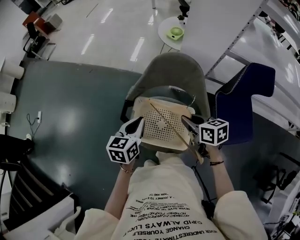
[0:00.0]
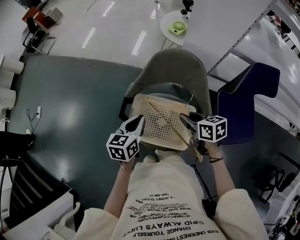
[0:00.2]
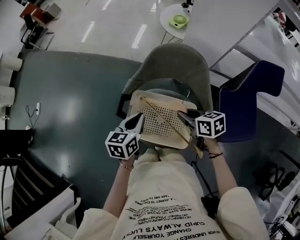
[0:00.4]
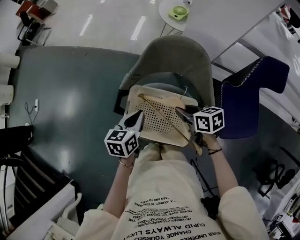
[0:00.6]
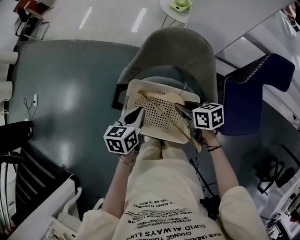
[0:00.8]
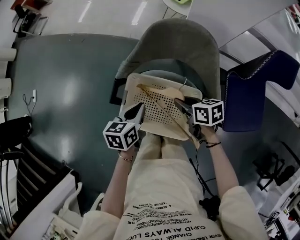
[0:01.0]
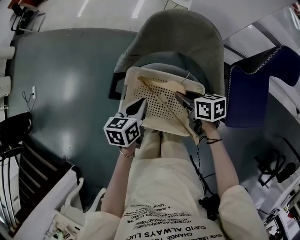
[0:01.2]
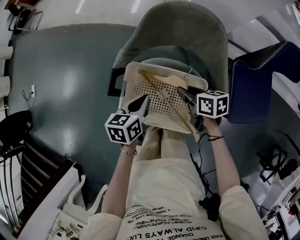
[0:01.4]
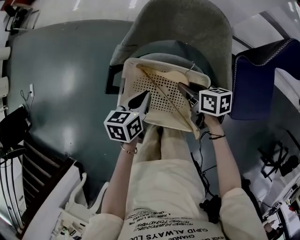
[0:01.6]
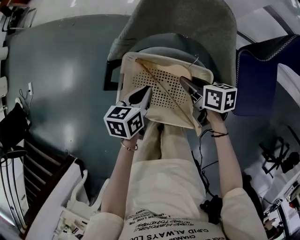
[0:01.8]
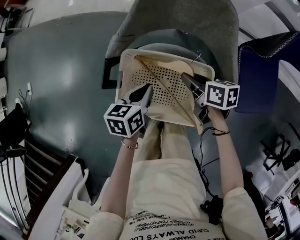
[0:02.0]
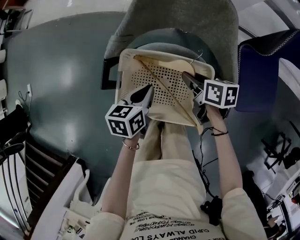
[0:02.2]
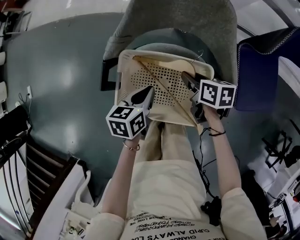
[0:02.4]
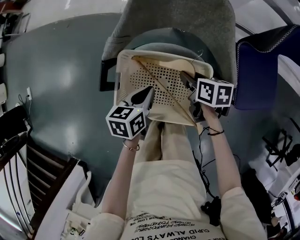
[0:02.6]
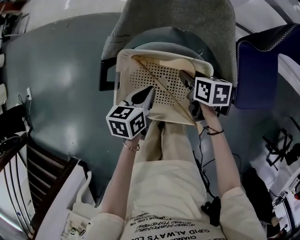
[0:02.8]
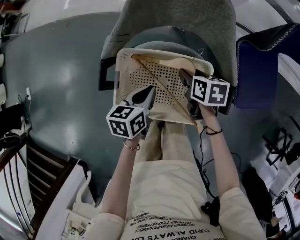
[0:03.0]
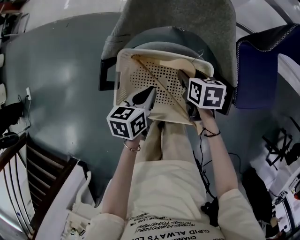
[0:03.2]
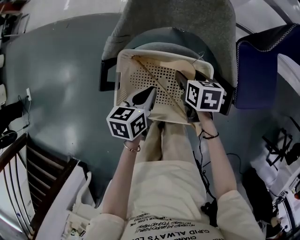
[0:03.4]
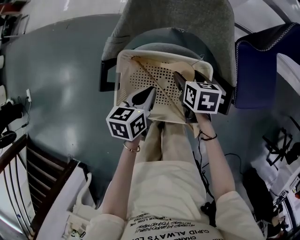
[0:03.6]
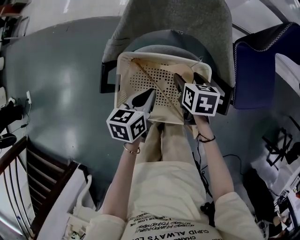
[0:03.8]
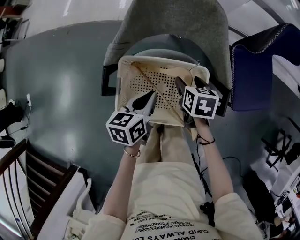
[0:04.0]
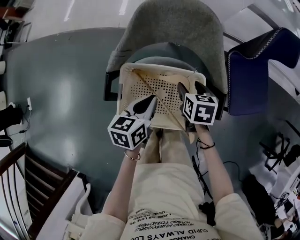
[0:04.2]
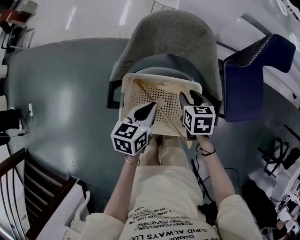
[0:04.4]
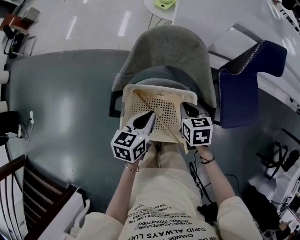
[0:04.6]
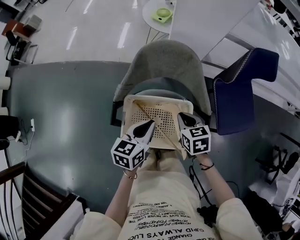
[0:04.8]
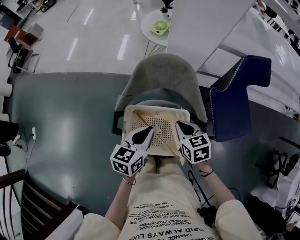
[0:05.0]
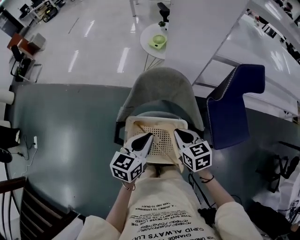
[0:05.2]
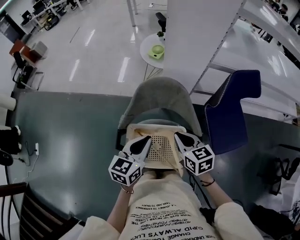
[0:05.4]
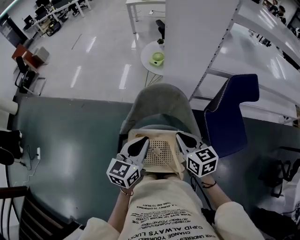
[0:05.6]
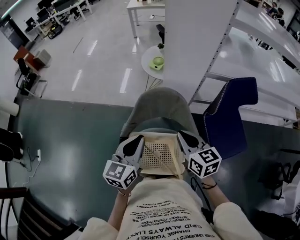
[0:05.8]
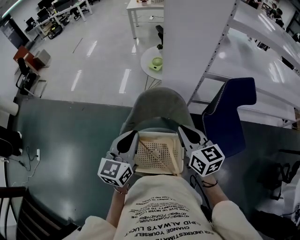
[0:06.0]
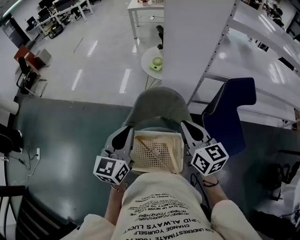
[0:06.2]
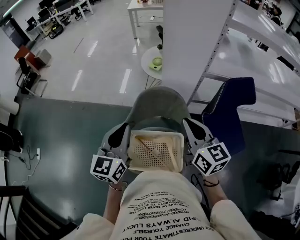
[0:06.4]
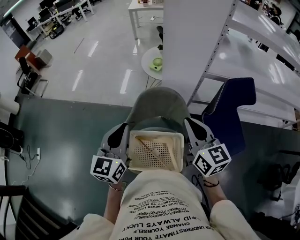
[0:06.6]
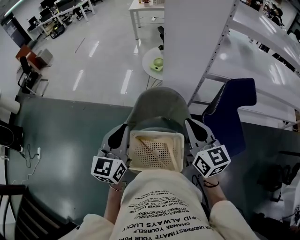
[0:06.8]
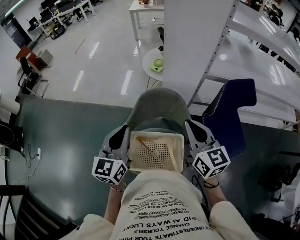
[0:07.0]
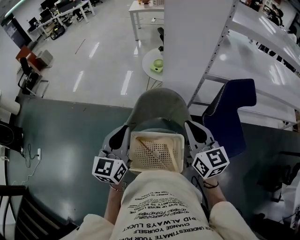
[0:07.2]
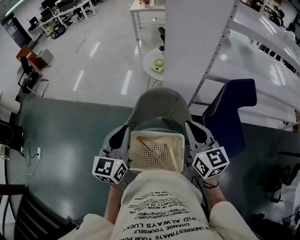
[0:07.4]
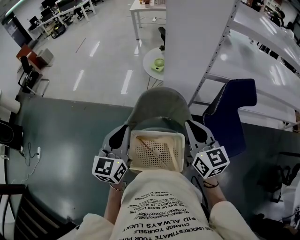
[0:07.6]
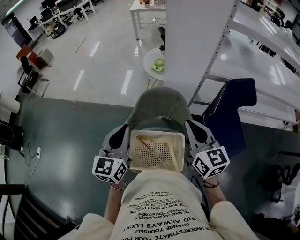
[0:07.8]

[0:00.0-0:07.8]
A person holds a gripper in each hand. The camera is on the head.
0:00.0 to 0:01.6: The grippers both shift downward by approximately 15 cm.
0:01.6 to 0:03.2: The right gripper changes place by some 5 cm, rotates approximately 30 degrees, and opens its fingers.
0:03.2 to 0:04.6: Both grippers move upward, roughly 10 cm. The right gripper closes up.
0:04.6 to 0:06.2: Both grippers travel together upward, some 25 cm. The right gripper tilts its fingers approximately 40 degrees upward; the left gripper turns by approximately 40 degrees.
0:06.2 to 0:07.8: The grippers move only a little.

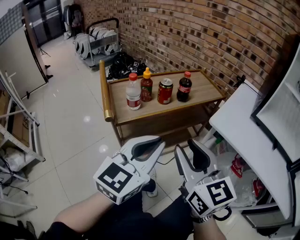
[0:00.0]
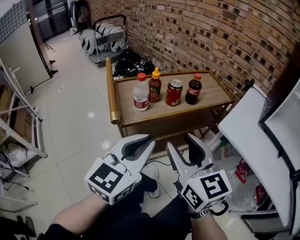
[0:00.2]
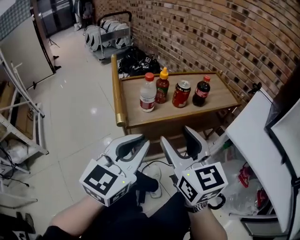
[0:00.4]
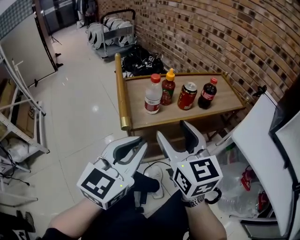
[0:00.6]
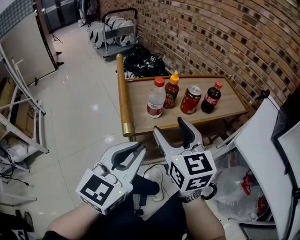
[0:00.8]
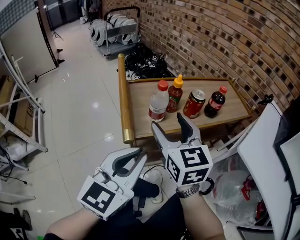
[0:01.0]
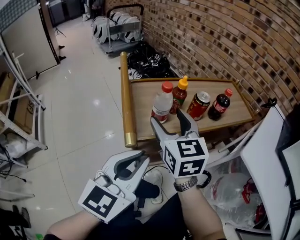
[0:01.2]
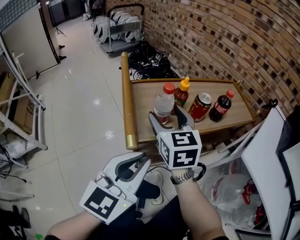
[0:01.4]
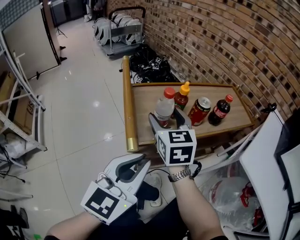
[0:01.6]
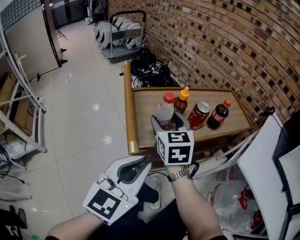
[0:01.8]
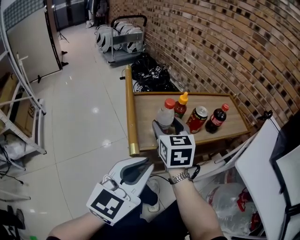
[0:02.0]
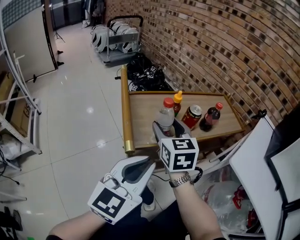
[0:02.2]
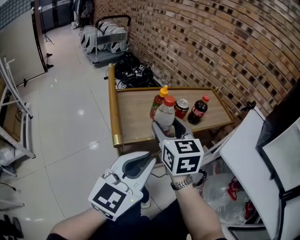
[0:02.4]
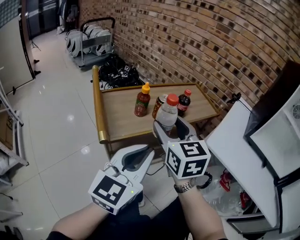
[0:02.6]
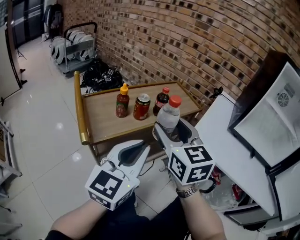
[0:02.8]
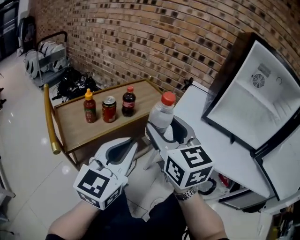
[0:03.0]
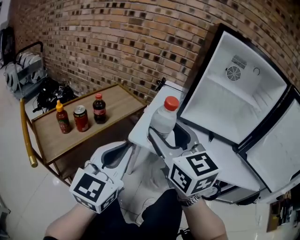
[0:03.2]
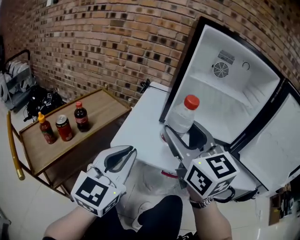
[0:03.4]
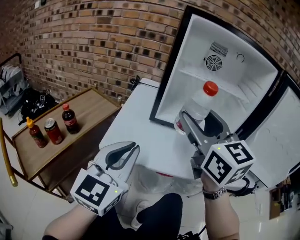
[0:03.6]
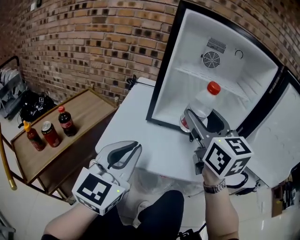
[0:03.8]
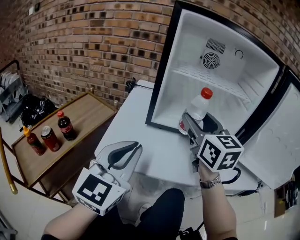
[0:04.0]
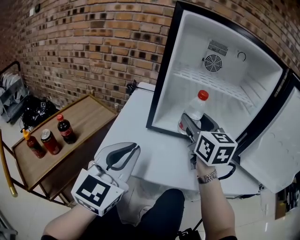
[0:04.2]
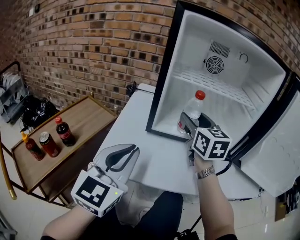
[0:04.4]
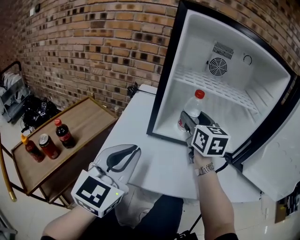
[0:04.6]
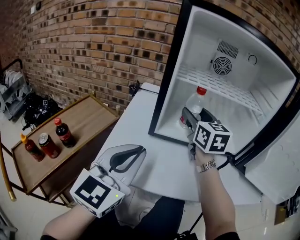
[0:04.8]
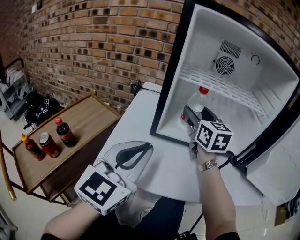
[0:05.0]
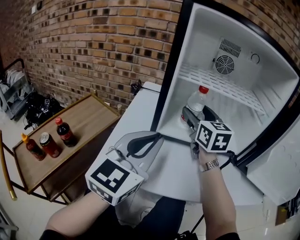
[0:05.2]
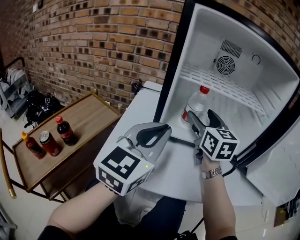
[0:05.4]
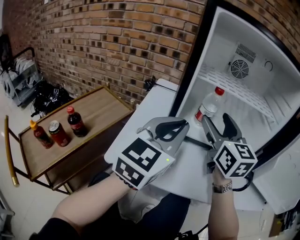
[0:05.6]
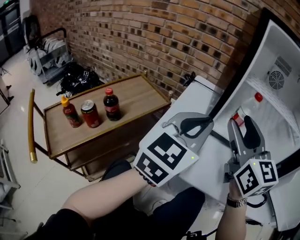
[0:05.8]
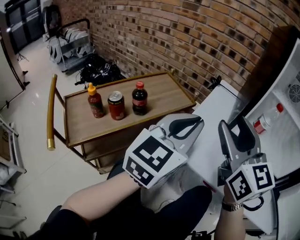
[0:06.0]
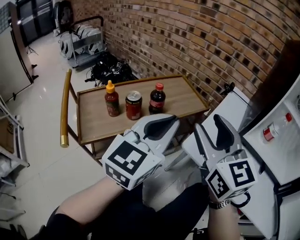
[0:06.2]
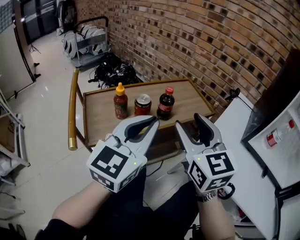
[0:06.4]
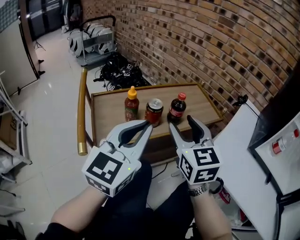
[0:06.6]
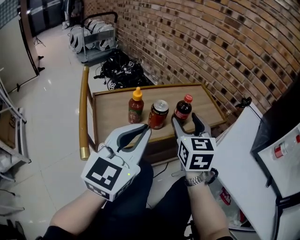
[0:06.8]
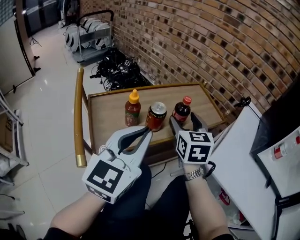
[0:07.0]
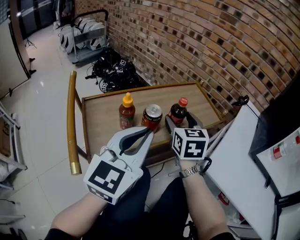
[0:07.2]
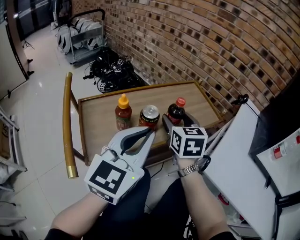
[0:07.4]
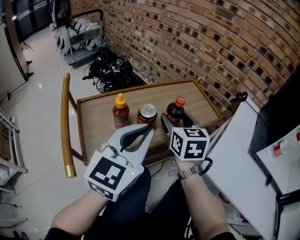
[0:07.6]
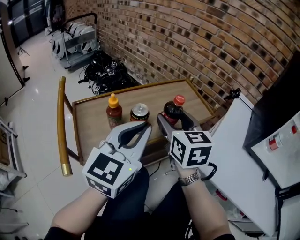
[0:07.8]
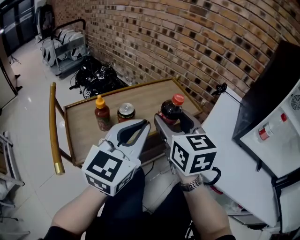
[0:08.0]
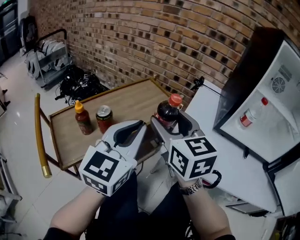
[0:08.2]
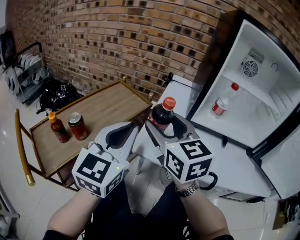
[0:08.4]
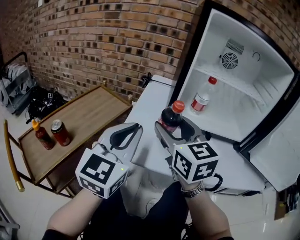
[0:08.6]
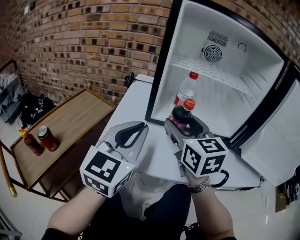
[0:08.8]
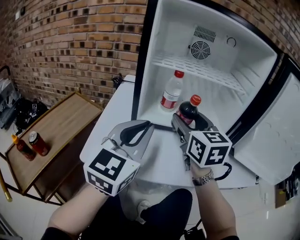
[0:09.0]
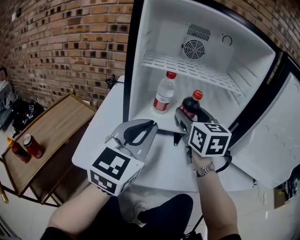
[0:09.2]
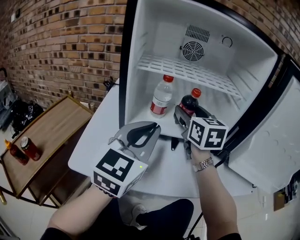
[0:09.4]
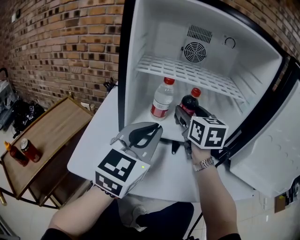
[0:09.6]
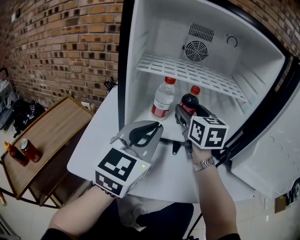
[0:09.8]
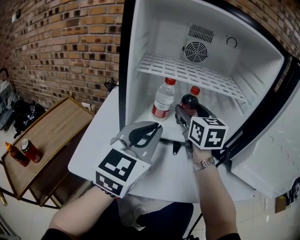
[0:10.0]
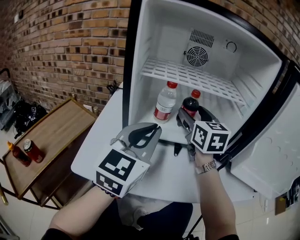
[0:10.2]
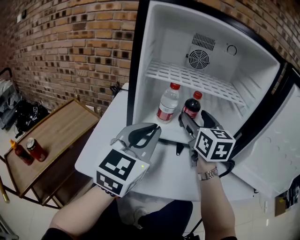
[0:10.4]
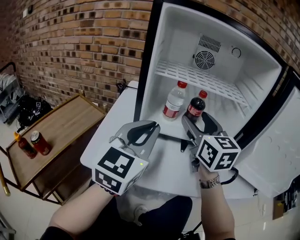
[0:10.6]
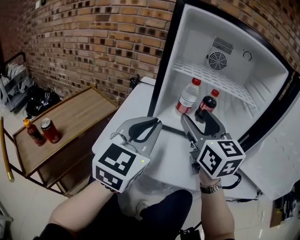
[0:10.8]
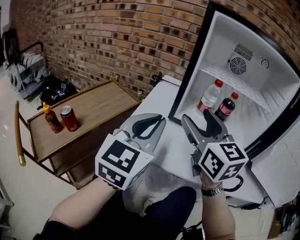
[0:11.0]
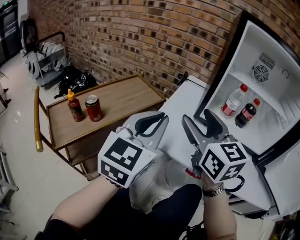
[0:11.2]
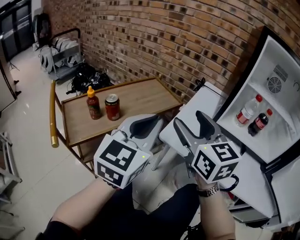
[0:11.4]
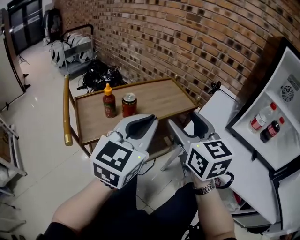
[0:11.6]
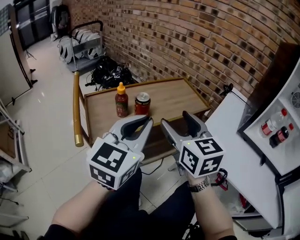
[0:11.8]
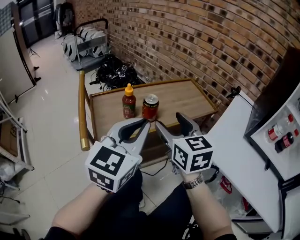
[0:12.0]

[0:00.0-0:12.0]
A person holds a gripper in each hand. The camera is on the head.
0:00.0 to 0:01.6: The left gripper goes about 15 cm to the left and forward, while the right gripper moves forward and to the left, some 30 cm, and opens its fingers.
0:01.6 to 0:03.0: The right gripper heads to the right, upward and backward, covering some 35 cm, and swivels some 20 degrees. Meanwhile the left gripper heads to the right, covering roughly 20 cm, and changes its angle by approximately 20 degrees.
0:03.0 to 0:04.4: The left gripper heads to the right and forward, covering some 25 cm, and turns by some 20 degrees, while the right gripper goes about 40 cm to the right and forward, and changes its angle by approximately 30 degrees.
0:04.4 to 0:06.0: The left gripper goes about 10 cm to the left. The right gripper is displaced to the left and backward by about 25 cm, and changes its angle by about 30 degrees.
0:06.0 to 0:07.6: The left gripper travels to the left by about 25 cm, and turns by approximately 20 degrees; the right gripper goes some 35 cm to the left, downward and forward, and turns by about 30 degrees.
0:07.6 to 0:09.0: The pair of grippers is taken some 50 cm. The right gripper rotates approximately 40 degrees. Meanwhile the left gripper rotates about 40 degrees.
0:09.0 to 0:10.4: The right gripper shifts some 5 cm forward.
0:10.4 to 0:12.0: The pair of grippers is taken roughly 50 cm. The right gripper rotates roughly 50 degrees; the left gripper changes its angle by approximately 40 degrees.

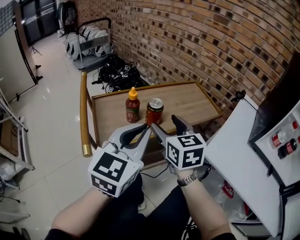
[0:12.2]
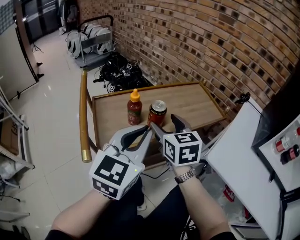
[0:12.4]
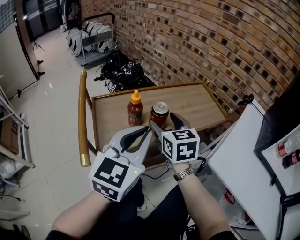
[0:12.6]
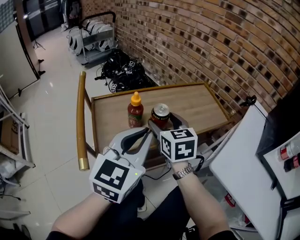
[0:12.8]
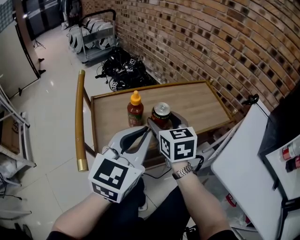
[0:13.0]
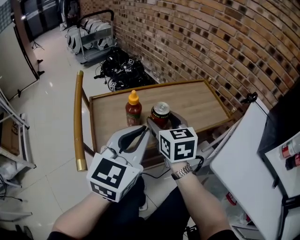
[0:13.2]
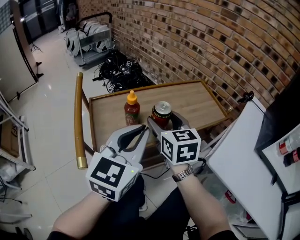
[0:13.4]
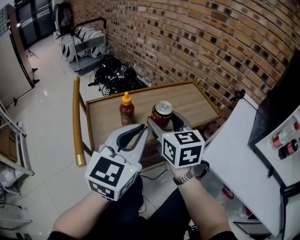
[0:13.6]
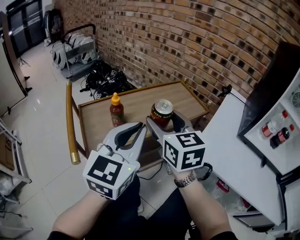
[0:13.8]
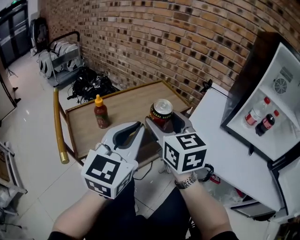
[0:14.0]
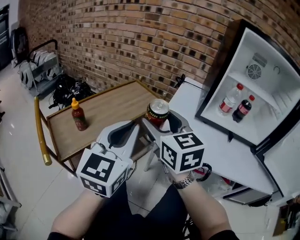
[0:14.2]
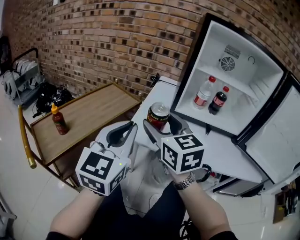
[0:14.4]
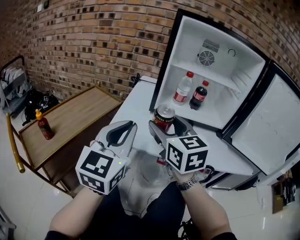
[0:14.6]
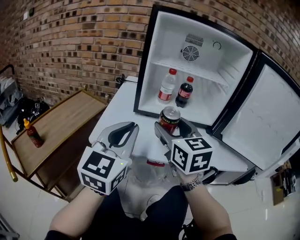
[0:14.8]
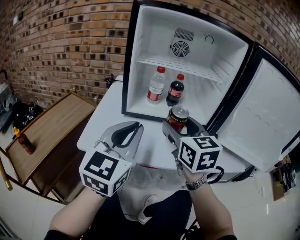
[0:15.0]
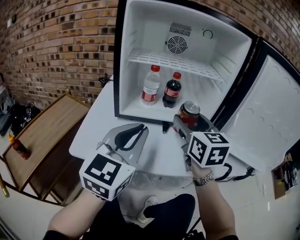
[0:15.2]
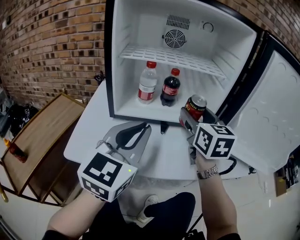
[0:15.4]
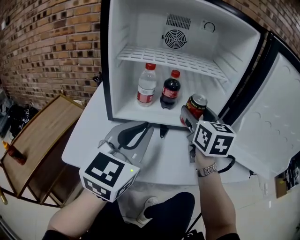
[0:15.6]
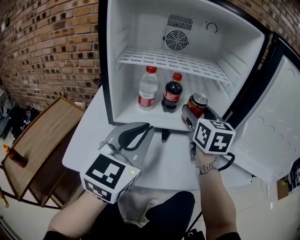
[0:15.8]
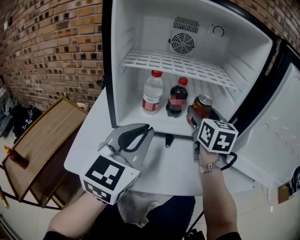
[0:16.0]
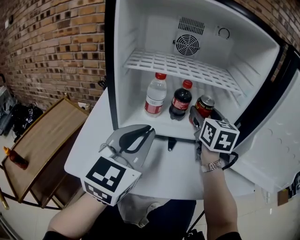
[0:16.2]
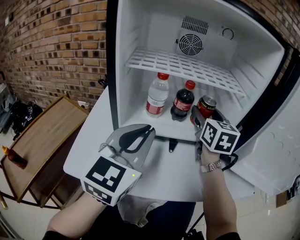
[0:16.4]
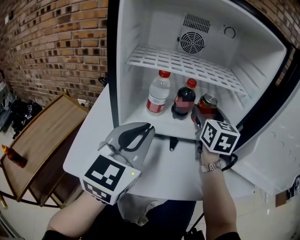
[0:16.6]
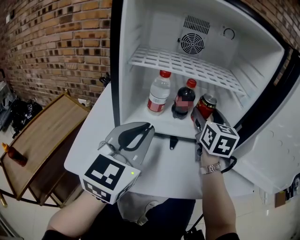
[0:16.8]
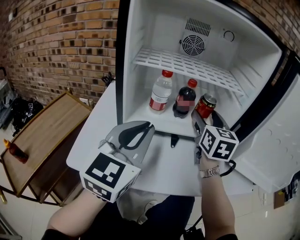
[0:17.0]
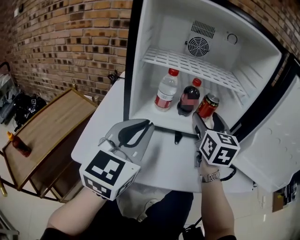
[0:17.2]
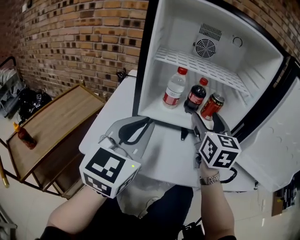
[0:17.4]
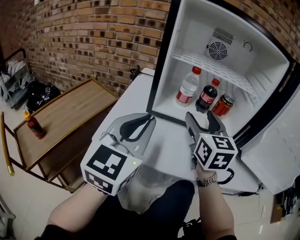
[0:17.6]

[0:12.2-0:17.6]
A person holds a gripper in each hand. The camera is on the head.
0:13.6 to 0:15.0: Both grippers are carried some 50 cm. The right gripper swivels about 50 degrees, while the left gripper rotates approximately 40 degrees.
0:15.0 to 0:16.2: The left gripper is displaced forward by approximately 10 cm. The right gripper heads forward, covering about 20 cm.
0:16.2 to 0:17.6: The two grippers go some 15 cm backward and to the left.
